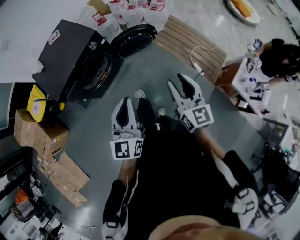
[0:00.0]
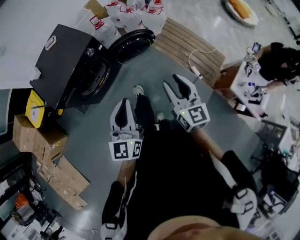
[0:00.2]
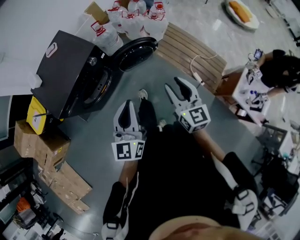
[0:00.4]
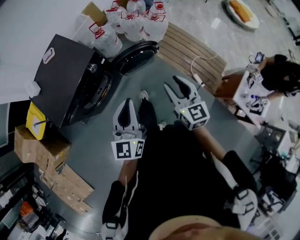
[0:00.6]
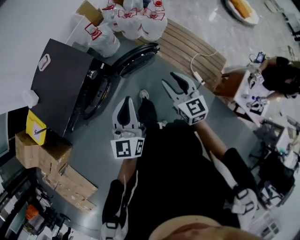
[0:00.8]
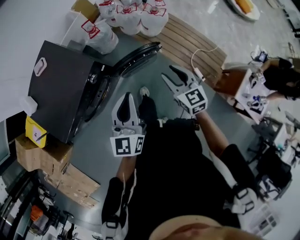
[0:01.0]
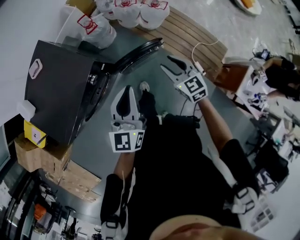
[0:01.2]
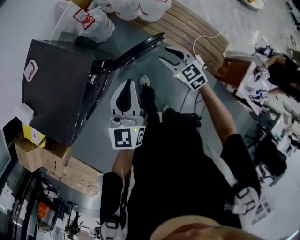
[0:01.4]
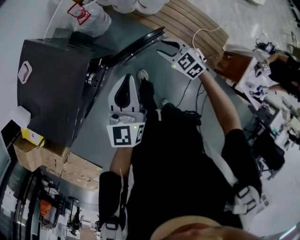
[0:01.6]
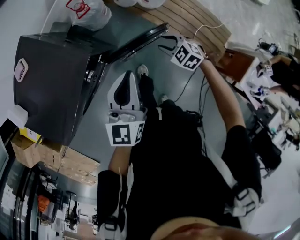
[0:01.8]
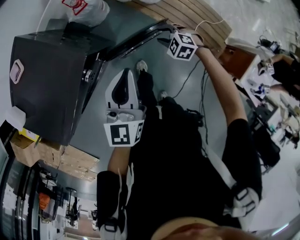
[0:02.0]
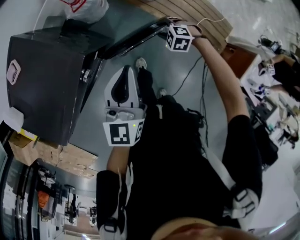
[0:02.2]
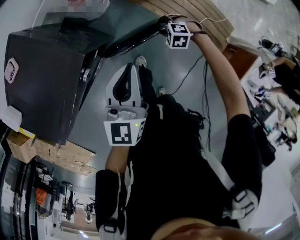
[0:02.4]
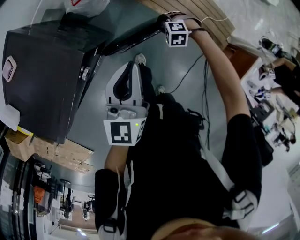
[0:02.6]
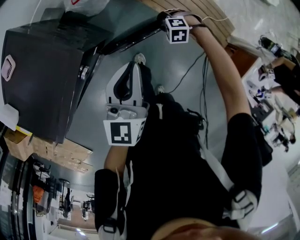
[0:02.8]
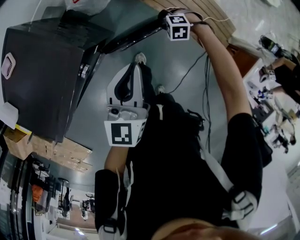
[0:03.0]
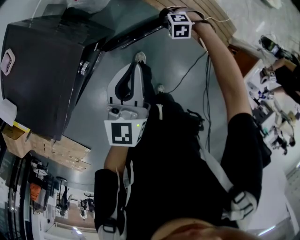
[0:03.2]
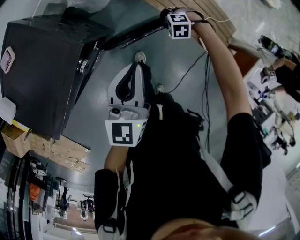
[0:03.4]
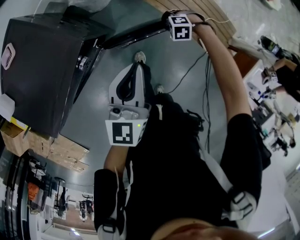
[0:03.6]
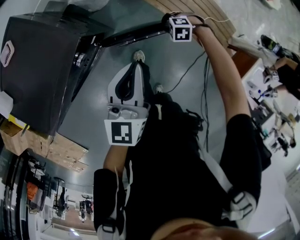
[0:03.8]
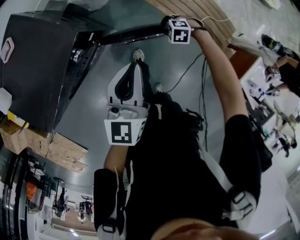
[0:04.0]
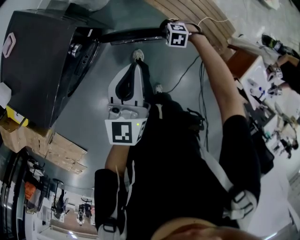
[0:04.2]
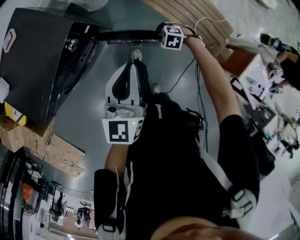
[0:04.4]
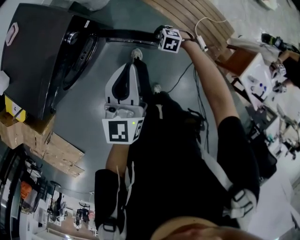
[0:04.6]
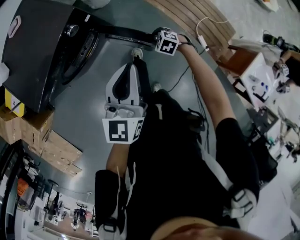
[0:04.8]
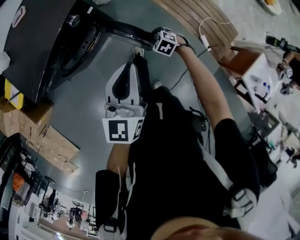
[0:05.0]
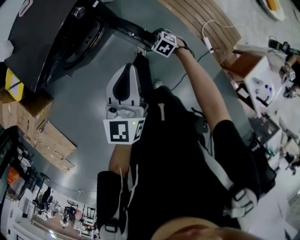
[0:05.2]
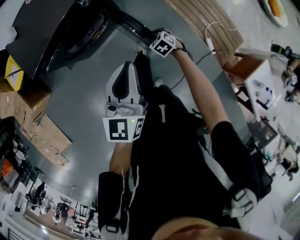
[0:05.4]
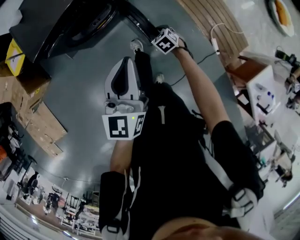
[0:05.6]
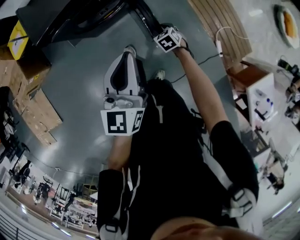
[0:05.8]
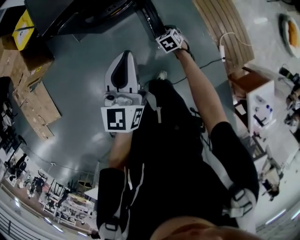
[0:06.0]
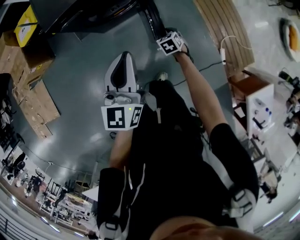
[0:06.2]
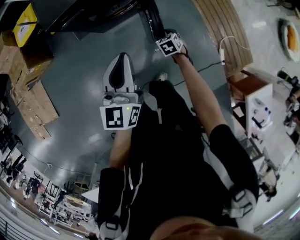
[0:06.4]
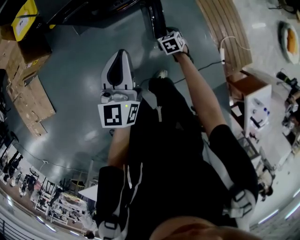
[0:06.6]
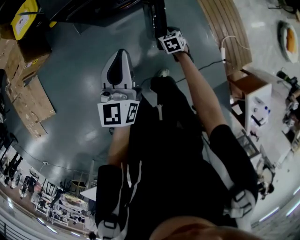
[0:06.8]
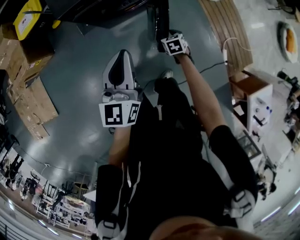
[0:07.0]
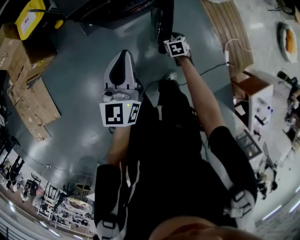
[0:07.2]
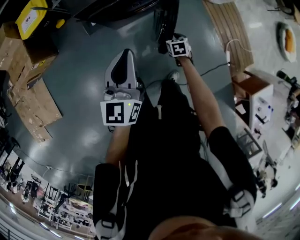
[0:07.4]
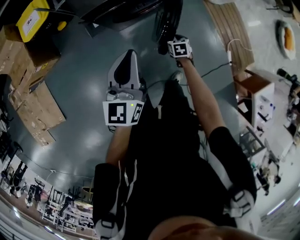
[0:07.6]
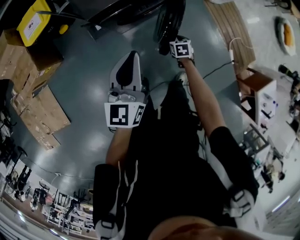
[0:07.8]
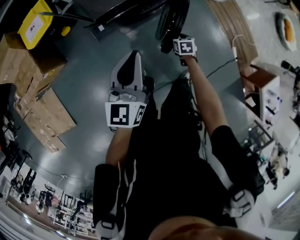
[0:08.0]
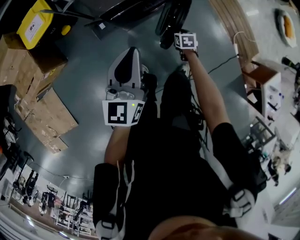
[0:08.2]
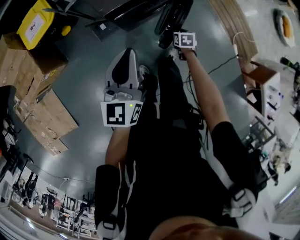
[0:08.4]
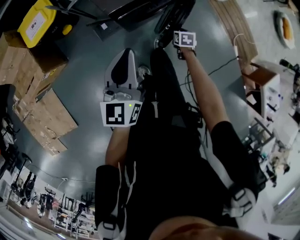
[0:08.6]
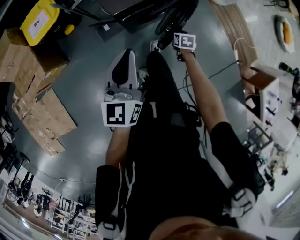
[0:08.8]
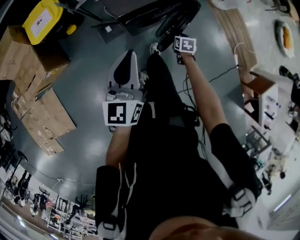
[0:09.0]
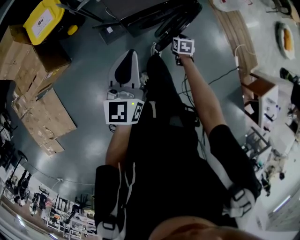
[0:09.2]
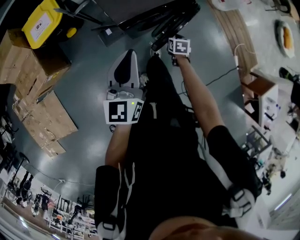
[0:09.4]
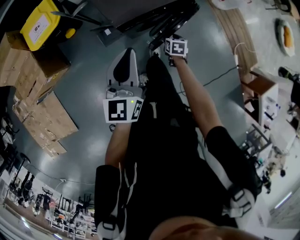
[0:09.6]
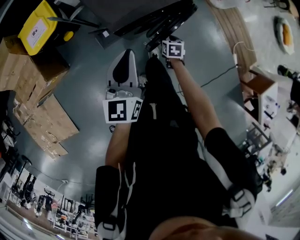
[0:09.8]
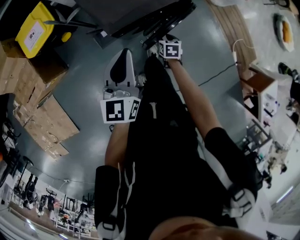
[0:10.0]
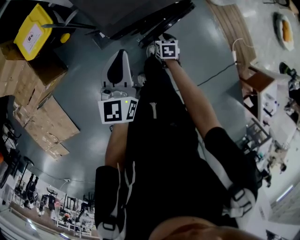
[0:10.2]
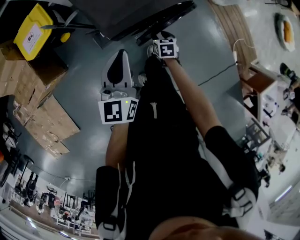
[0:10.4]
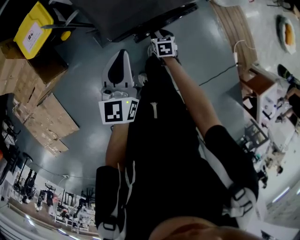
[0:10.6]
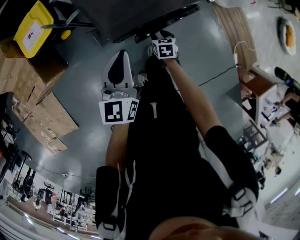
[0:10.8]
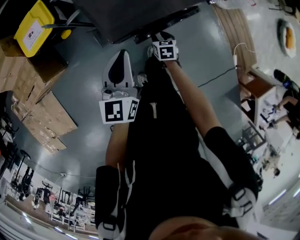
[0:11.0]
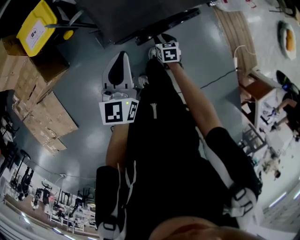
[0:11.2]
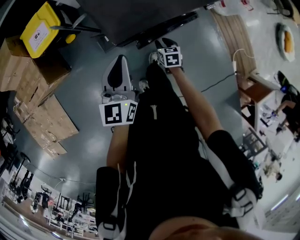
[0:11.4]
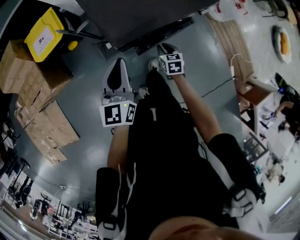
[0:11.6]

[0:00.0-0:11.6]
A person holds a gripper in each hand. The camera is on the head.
0:00.0 to 0:01.4: The two grippers travel together, forward, some 40 cm. The right gripper is displaced downward by approximately 20 cm, and rotates approximately 40 degrees.
0:01.4 to 0:02.8: The right gripper is displaced downward by about 25 cm, and tilts its fingers roughly 40 degrees downward; the left gripper is displaced downward by some 10 cm.
0:02.8 to 0:04.4: The right gripper changes place by roughly 15 cm. The left gripper shifts by roughly 15 cm.
0:04.4 to 0:05.8: The right gripper changes place by roughly 20 cm, and changes its angle by about 30 degrees, while the left gripper moves about 25 cm, and rotates about 20 degrees.
0:05.8 to 0:07.2: Both grippers move to the left, roughly 20 cm.
0:07.2 to 0:08.8: The left gripper is displaced to the left by approximately 20 cm. Meanwhile the right gripper is displaced to the left and forward by some 15 cm, and turns by some 20 degrees.
0:08.8 to 0:10.2: The left gripper heads forward, covering about 10 cm, while the right gripper heads to the left and forward, covering roughly 10 cm.
0:10.2 to 0:11.6: The right gripper shifts roughly 10 cm upward, and closes.

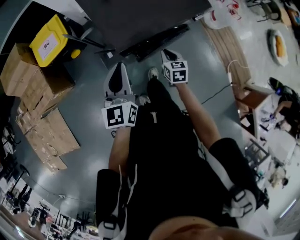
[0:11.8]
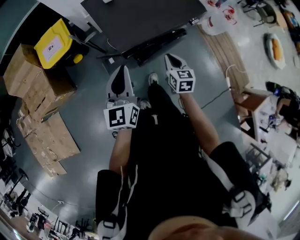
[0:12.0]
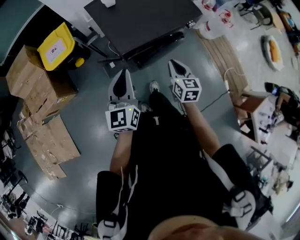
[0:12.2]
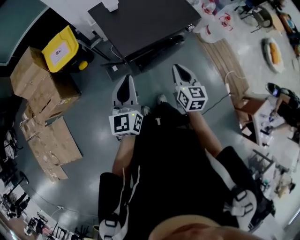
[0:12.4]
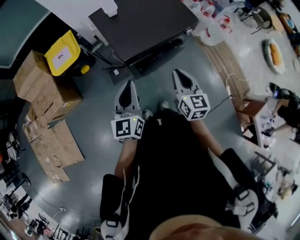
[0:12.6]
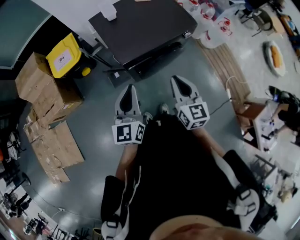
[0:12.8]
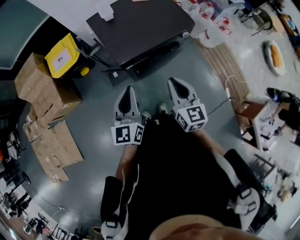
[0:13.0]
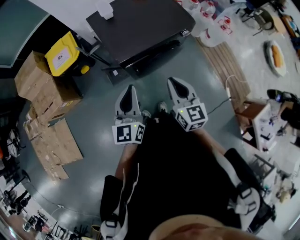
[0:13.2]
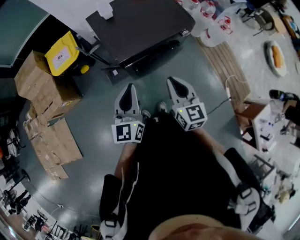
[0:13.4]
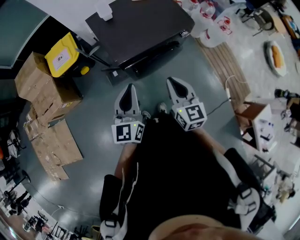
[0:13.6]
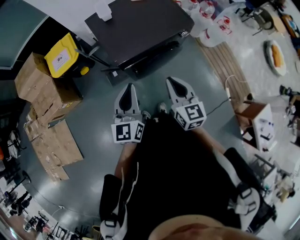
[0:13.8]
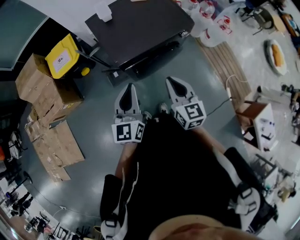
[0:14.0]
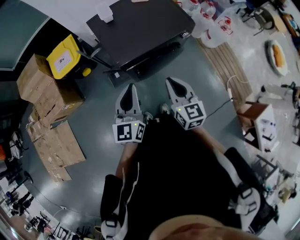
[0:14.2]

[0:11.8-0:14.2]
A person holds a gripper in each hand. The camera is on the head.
0:11.8 to 0:13.0: The right gripper heads upward and backward, covering some 30 cm, and turns by about 30 degrees. Meanwhile the left gripper is displaced backward and upward by approximately 15 cm.
0:13.0 to 0:14.2: The grippers stay close to where they were, moving slightly.

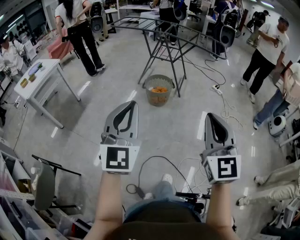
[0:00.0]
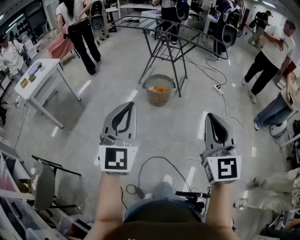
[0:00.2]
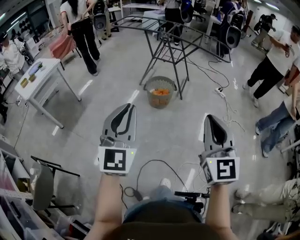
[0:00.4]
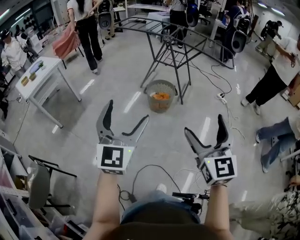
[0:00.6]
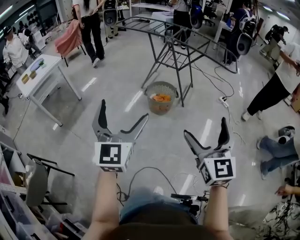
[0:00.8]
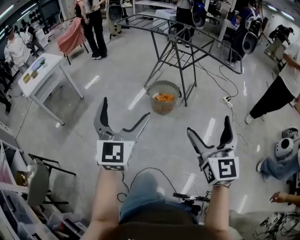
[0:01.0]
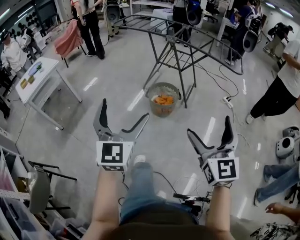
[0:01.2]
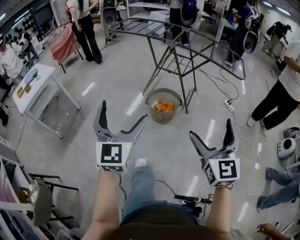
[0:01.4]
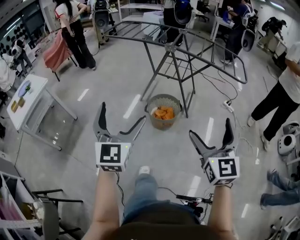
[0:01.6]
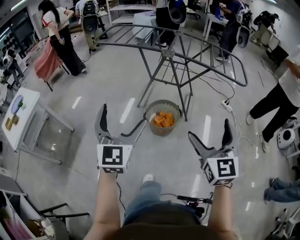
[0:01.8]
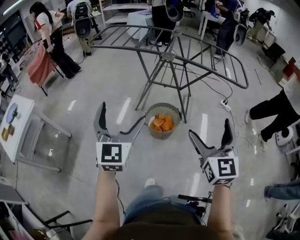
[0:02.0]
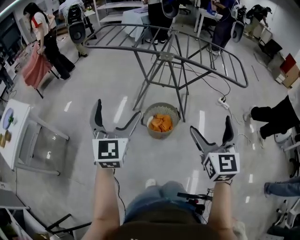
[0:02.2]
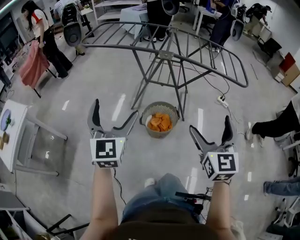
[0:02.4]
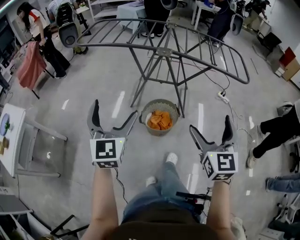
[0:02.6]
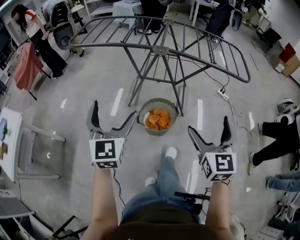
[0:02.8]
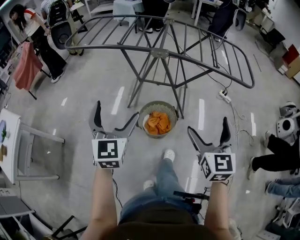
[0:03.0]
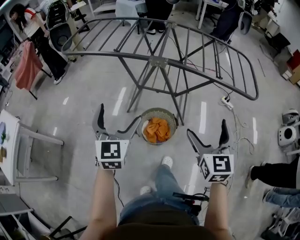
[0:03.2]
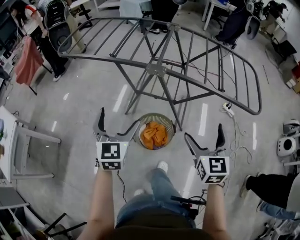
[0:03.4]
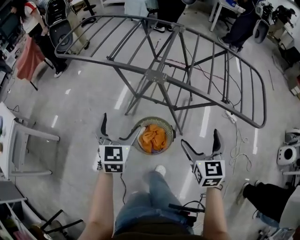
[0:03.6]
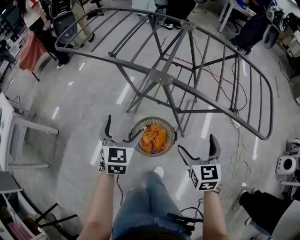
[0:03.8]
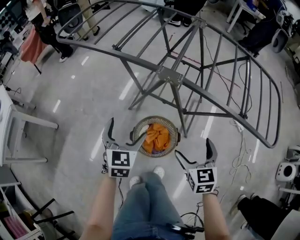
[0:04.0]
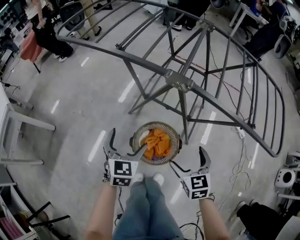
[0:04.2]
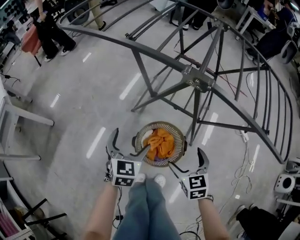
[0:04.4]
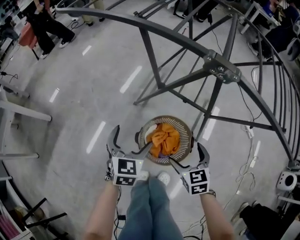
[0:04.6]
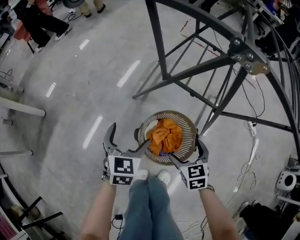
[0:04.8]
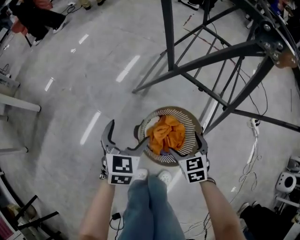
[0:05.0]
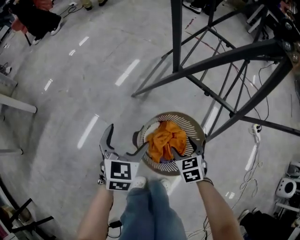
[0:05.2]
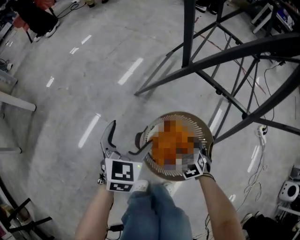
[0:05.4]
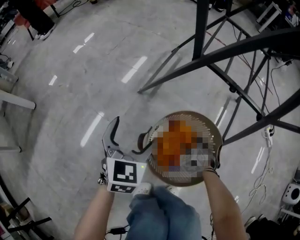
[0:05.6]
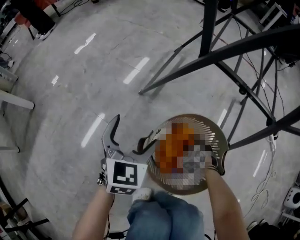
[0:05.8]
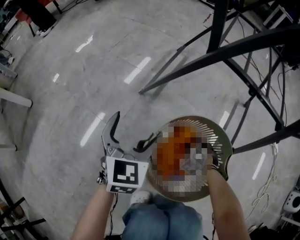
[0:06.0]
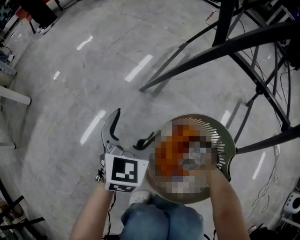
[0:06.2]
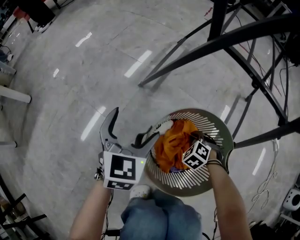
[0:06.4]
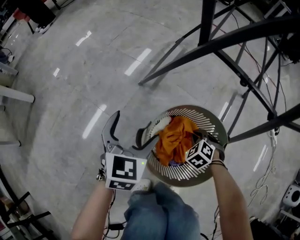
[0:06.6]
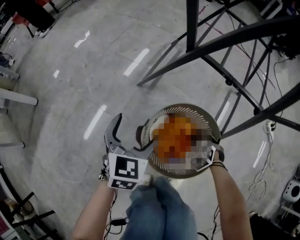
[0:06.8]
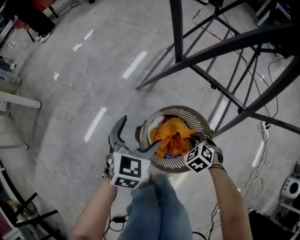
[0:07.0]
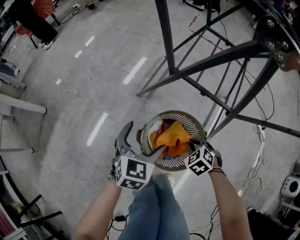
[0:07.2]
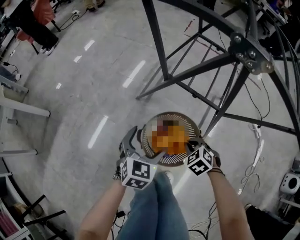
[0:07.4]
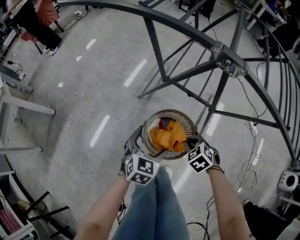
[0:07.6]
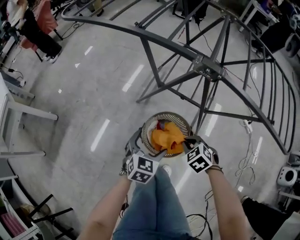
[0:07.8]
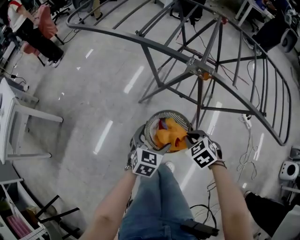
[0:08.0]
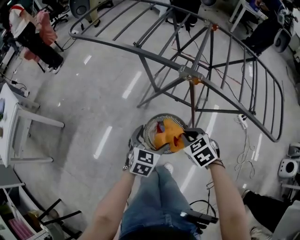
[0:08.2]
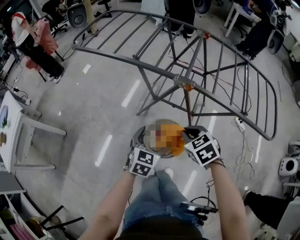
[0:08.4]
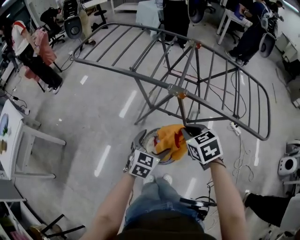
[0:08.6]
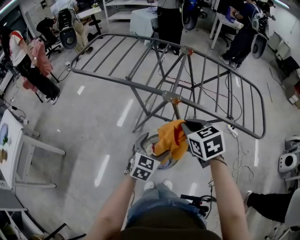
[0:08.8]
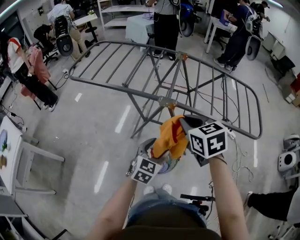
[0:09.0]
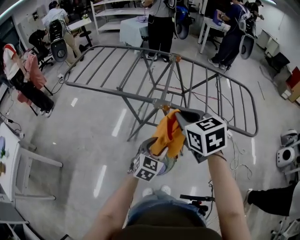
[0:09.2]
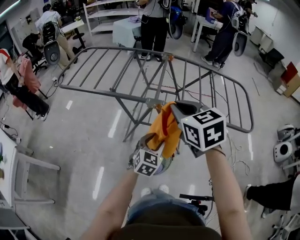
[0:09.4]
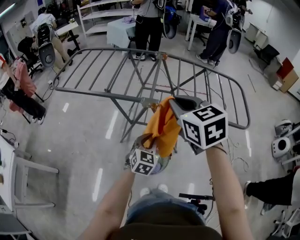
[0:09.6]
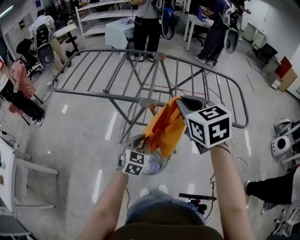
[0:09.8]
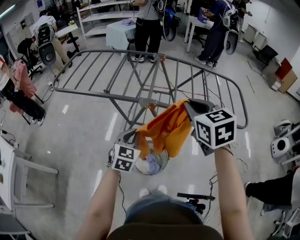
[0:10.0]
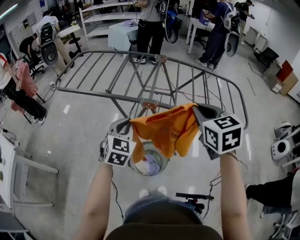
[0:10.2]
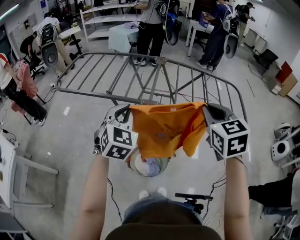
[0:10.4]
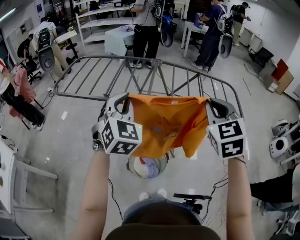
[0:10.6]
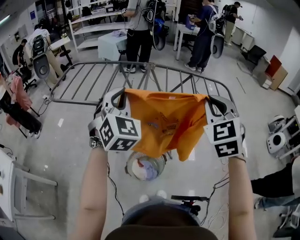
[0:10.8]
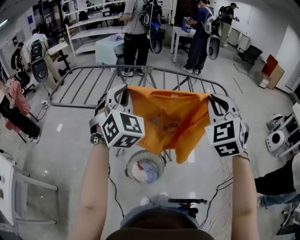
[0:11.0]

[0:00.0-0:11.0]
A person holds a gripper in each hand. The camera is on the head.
0:00.0 to 0:01.6: Both grippers are carried forward, about 40 cm. The right gripper opens its fingers; the left gripper opens its fingers.
0:01.6 to 0:03.2: Both grippers move forward, approximately 40 cm.
0:03.2 to 0:04.8: The left gripper travels downward by approximately 40 cm, and turns by roughly 30 degrees. The right gripper goes roughly 50 cm downward and forward, and points its fingers some 30 degrees further downward.
0:04.8 to 0:06.2: The right gripper is displaced downward by about 40 cm, rotates around the line of its fingers by about 50 degrees, counterclockwise from behind, and closes its fingers. The left gripper moves downward, some 20 cm.
0:06.2 to 0:07.8: The left gripper travels upward and backward by about 30 cm. The right gripper travels upward by approximately 50 cm, and swivels roughly 30 degrees.
0:07.8 to 0:09.4: The right gripper moves upward, roughly 50 cm, and points its fingers some 40 degrees further upward; the left gripper moves upward and to the right, roughly 25 cm, rotates roughly 20 degrees, and closes up.
0:09.4 to 0:11.0: The right gripper is displaced to the right, upward and backward by some 20 cm, and swivels roughly 50 degrees. The left gripper goes roughly 30 cm upward, and turns by about 40 degrees.
